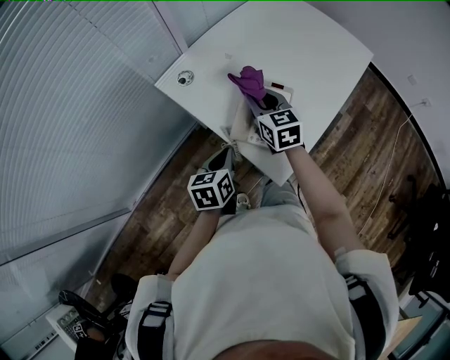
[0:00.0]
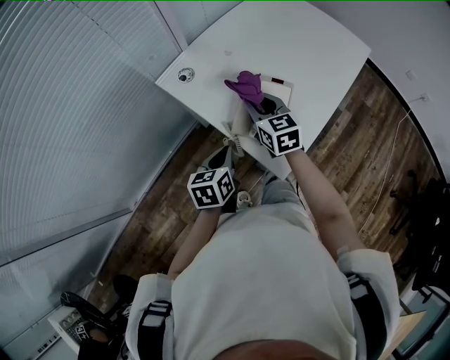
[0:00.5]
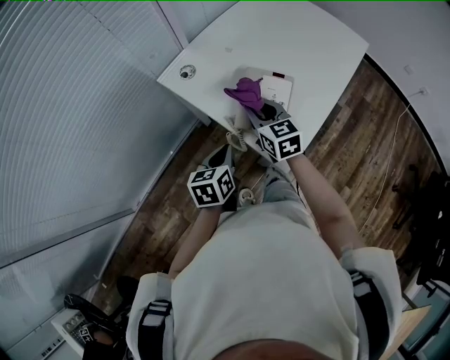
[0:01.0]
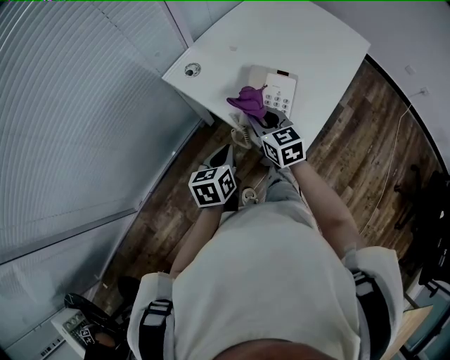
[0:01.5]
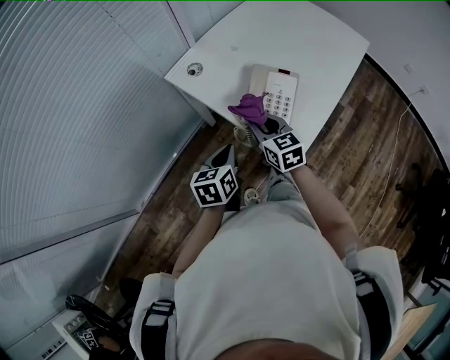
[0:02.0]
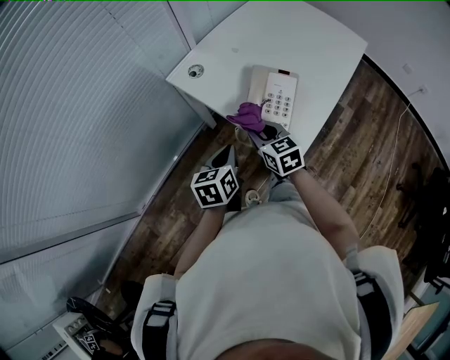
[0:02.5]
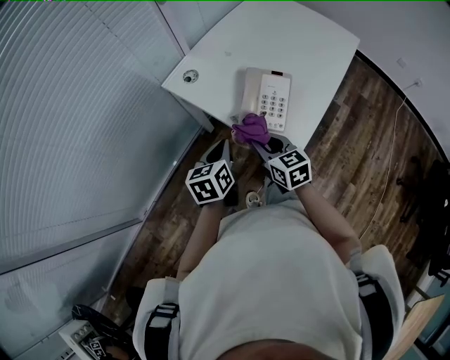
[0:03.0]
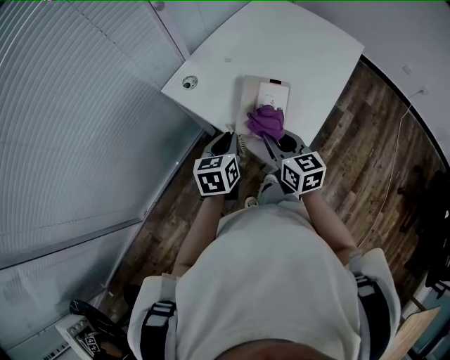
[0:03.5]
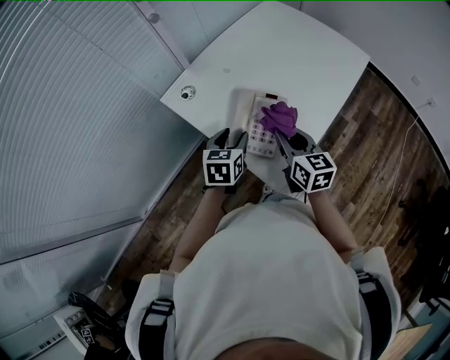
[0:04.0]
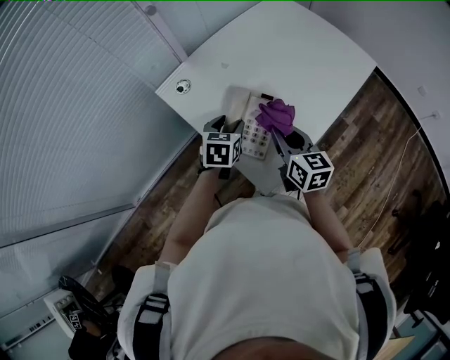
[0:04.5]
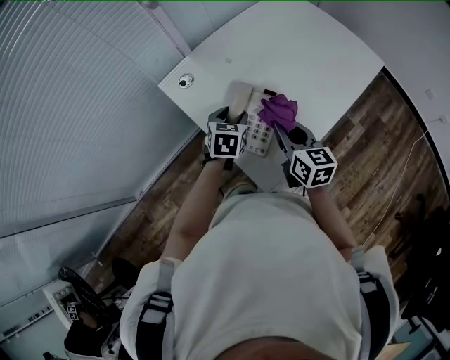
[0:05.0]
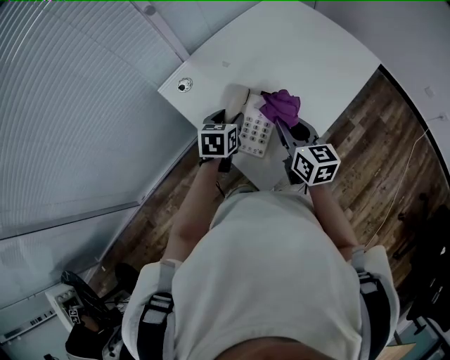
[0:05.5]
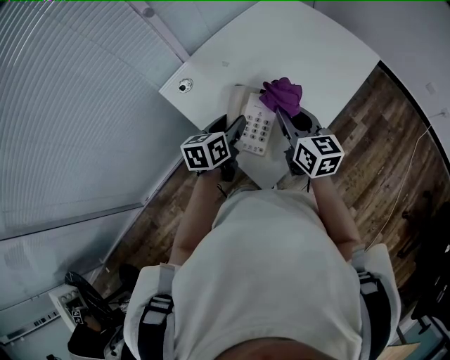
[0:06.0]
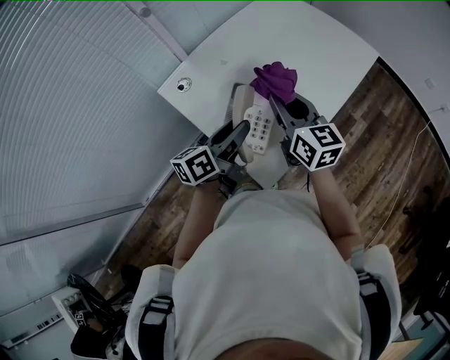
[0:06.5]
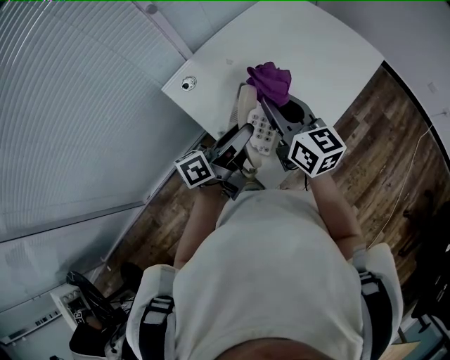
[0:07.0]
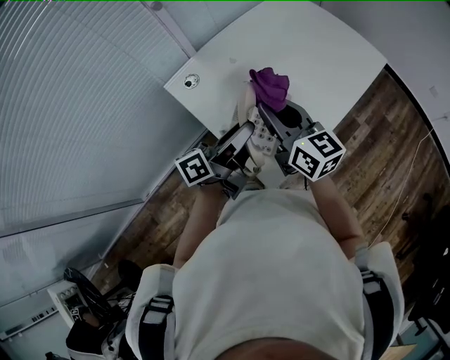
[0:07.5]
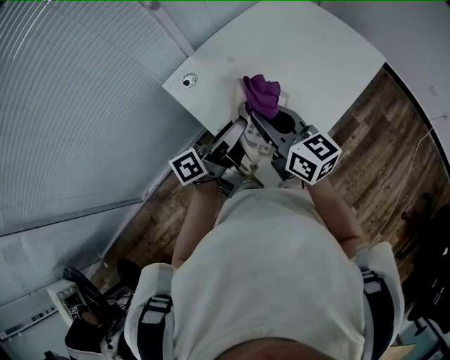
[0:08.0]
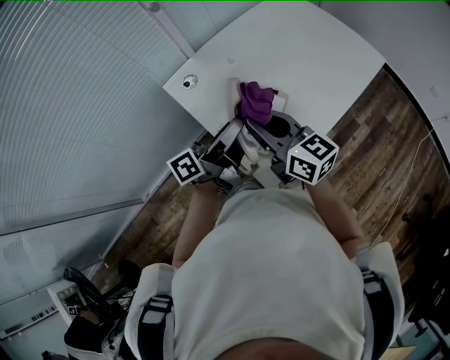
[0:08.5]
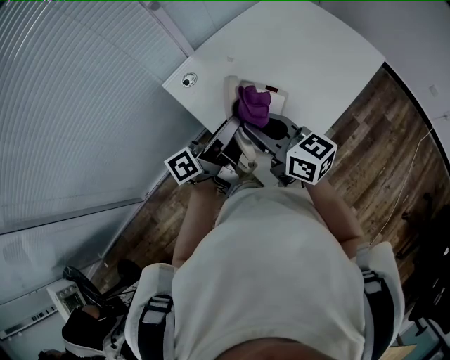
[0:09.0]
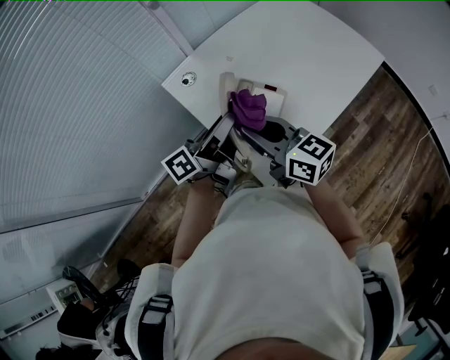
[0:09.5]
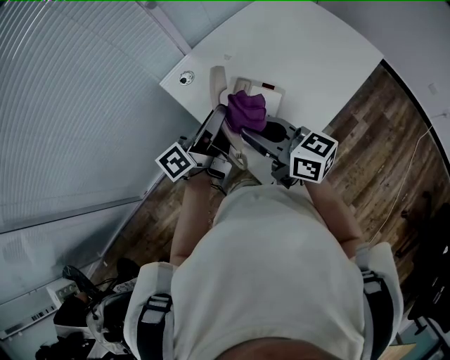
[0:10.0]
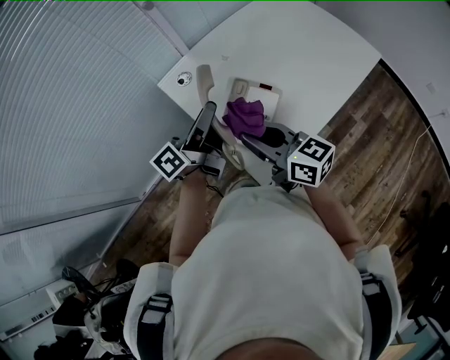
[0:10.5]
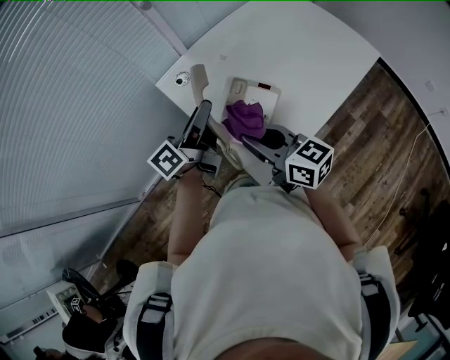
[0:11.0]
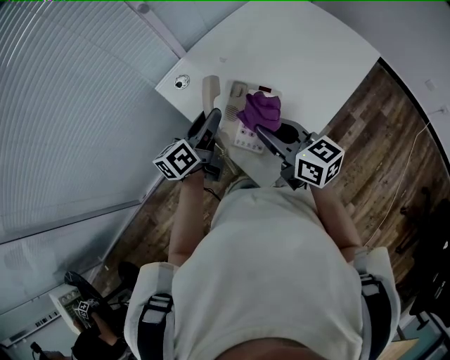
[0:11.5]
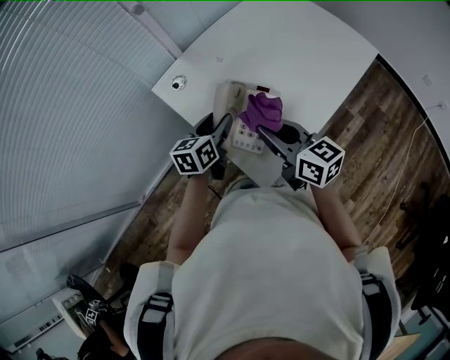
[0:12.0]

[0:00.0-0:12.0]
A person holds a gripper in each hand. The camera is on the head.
0:00.0 to 0:02.0: The left gripper changes place by about 5 cm; the right gripper shifts some 10 cm backward.
0:02.0 to 0:04.0: The right gripper is displaced to the right by roughly 15 cm. The left gripper heads forward and to the right, covering roughly 15 cm, and opens.
0:04.0 to 0:06.0: The right gripper ends up roughly 5 cm from where it was.
0:06.0 to 0:08.0: The right gripper is displaced to the left and upward by roughly 10 cm, and turns by approximately 20 degrees; the left gripper is displaced upward by approximately 10 cm, and angles its fingers upward, by roughly 40 degrees.
0:08.0 to 0:10.0: The right gripper shifts by some 5 cm.
0:10.0 to 0:12.0: The right gripper is displaced to the right by some 5 cm, while the left gripper travels downward by approximately 10 cm, and angles its fingers downward, by about 40 degrees.

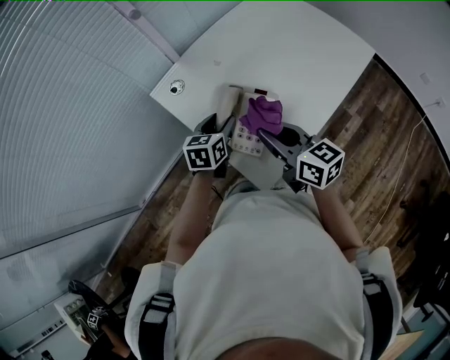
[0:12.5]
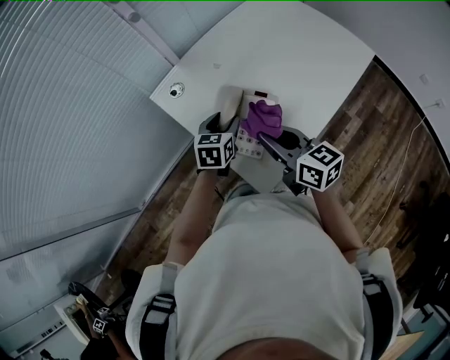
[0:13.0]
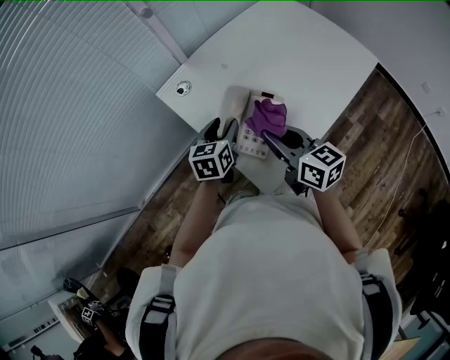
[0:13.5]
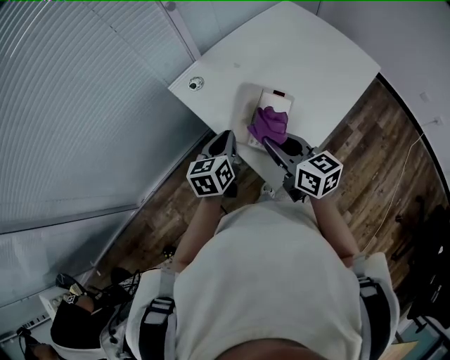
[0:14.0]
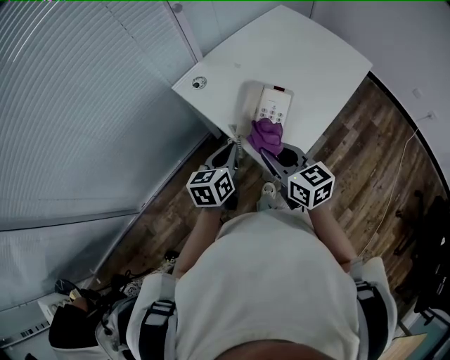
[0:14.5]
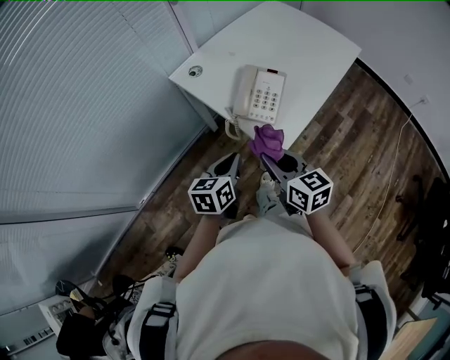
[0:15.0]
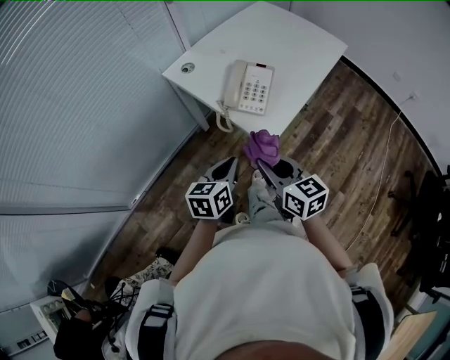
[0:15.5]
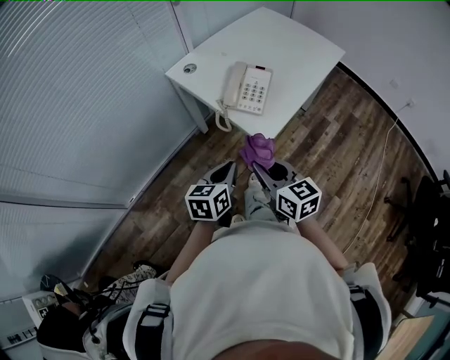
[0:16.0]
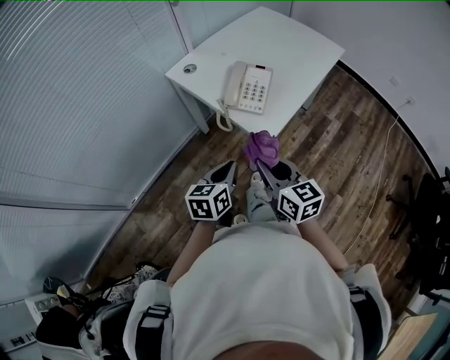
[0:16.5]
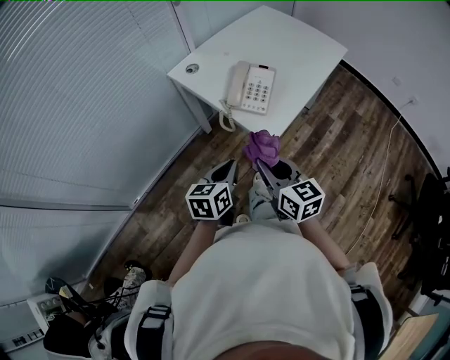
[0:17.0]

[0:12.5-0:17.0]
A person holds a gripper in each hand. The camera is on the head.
0:12.5 to 0:14.5: The right gripper goes approximately 10 cm to the left and backward. The left gripper goes roughly 15 cm backward, to the left and upward, and closes up.
0:14.5 to 0:17.0: Both grippers travel together backward, some 20 cm.

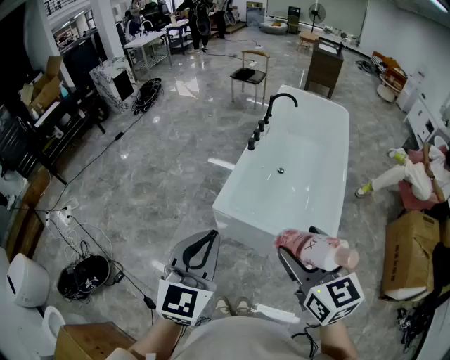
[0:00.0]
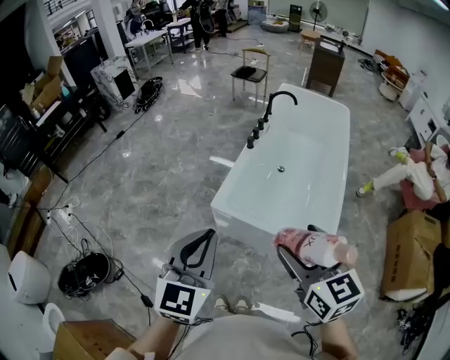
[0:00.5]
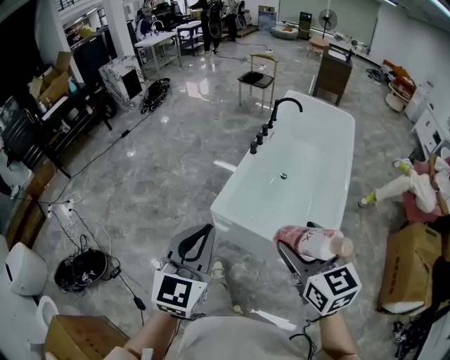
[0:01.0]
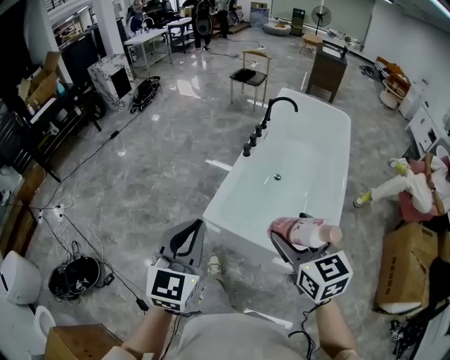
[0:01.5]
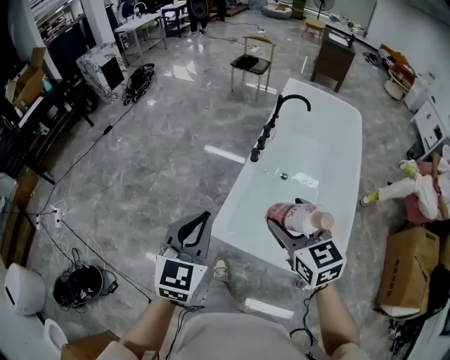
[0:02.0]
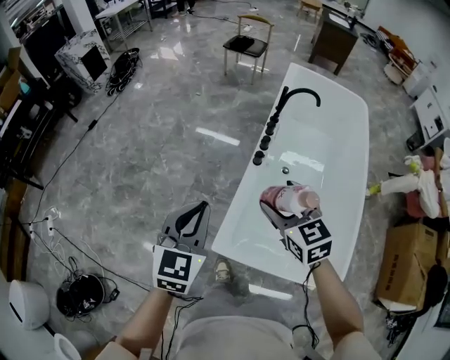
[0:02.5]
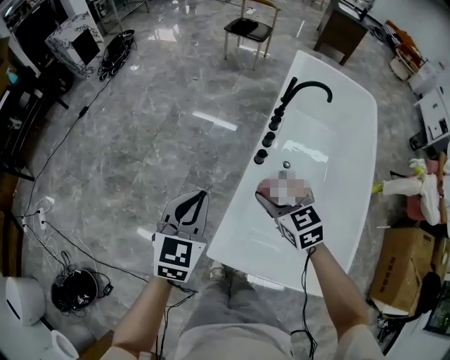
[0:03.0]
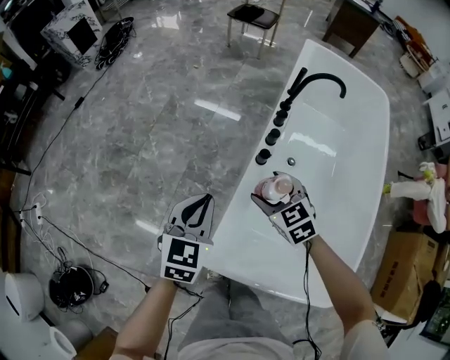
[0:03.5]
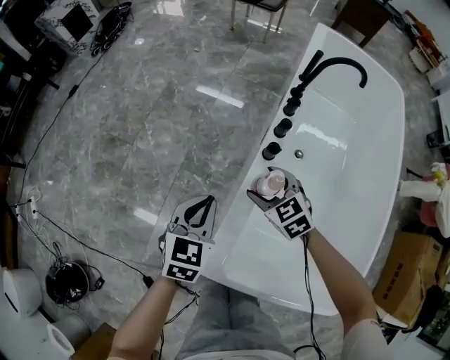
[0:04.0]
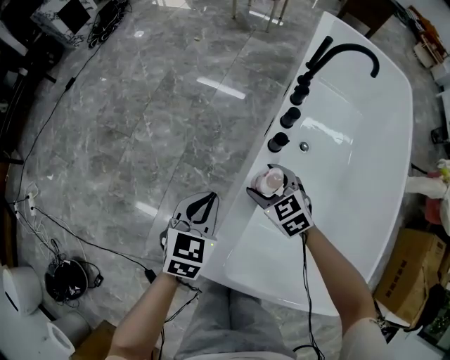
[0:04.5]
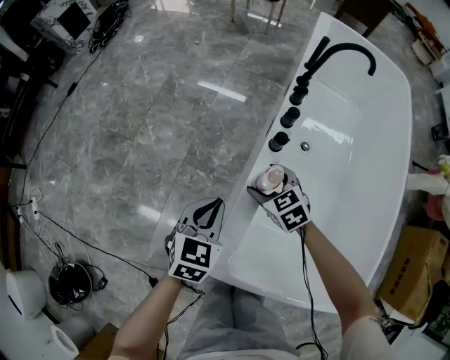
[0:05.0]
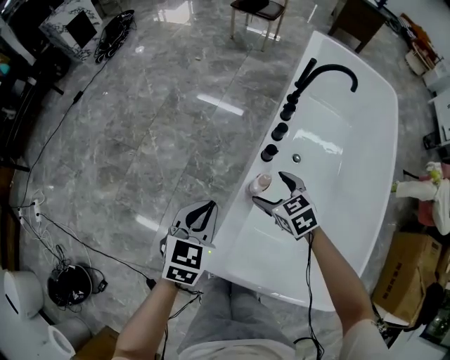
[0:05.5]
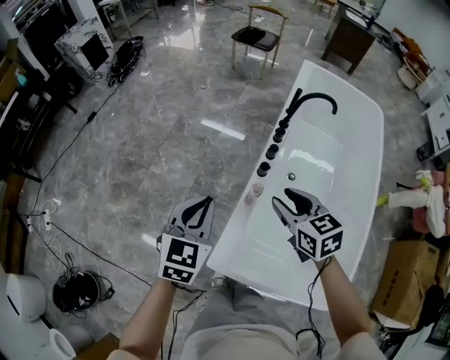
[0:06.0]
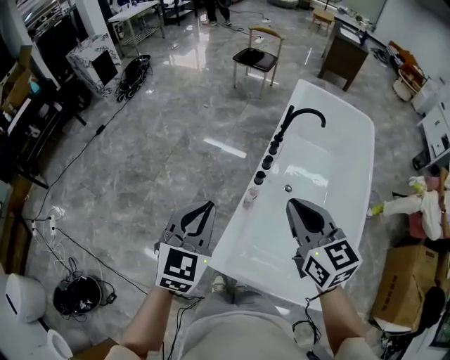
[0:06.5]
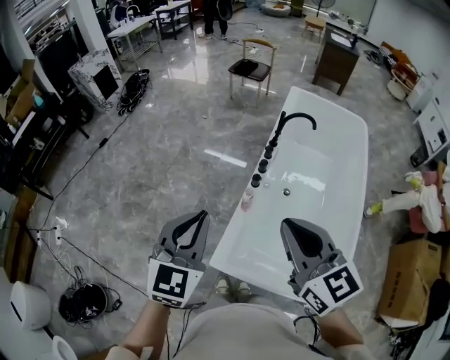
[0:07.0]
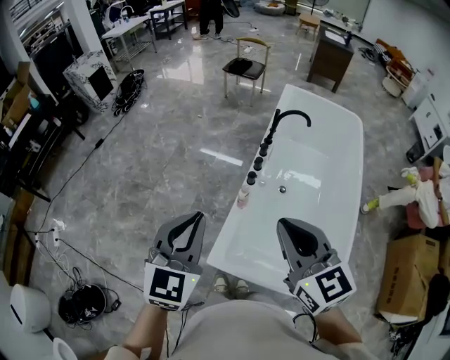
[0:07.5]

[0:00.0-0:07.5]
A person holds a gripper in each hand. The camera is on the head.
0:00.0 to 0:02.0: The grippers both shift forward by some 30 cm.
0:02.0 to 0:04.0: The grippers both shift downward and forward by roughly 50 cm. The right gripper swivels about 30 degrees; the left gripper turns by about 20 degrees.
0:04.0 to 0:05.5: The right gripper moves some 5 cm downward and comes back.
0:05.5 to 0:07.5: The left gripper heads upward, covering about 35 cm, and swivels about 30 degrees; the right gripper is displaced upward and backward by approximately 50 cm, points its fingers some 40 degrees further upward, and closes.

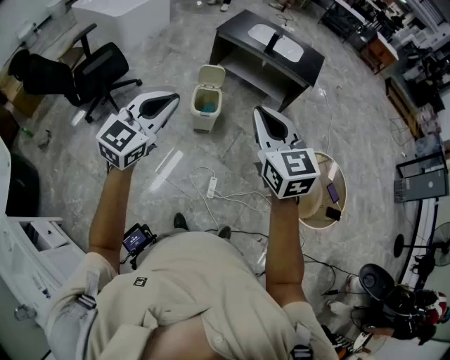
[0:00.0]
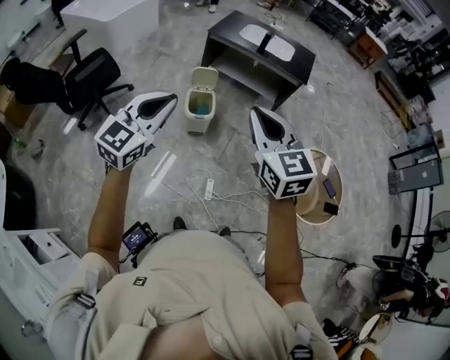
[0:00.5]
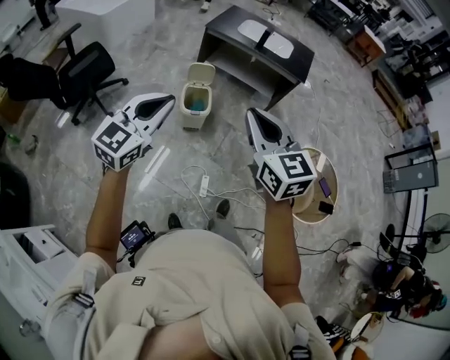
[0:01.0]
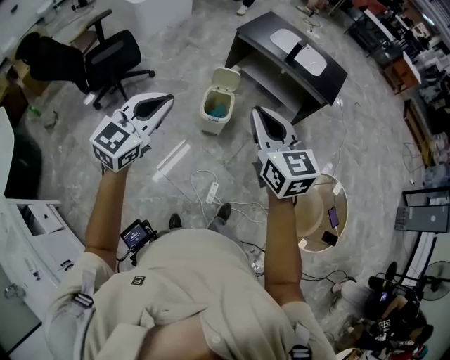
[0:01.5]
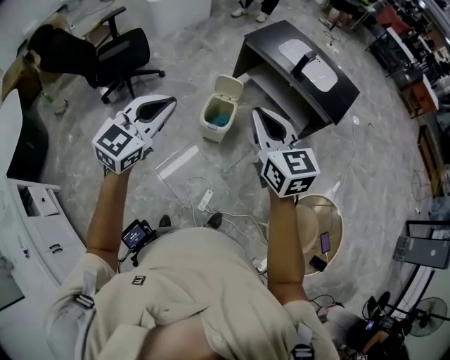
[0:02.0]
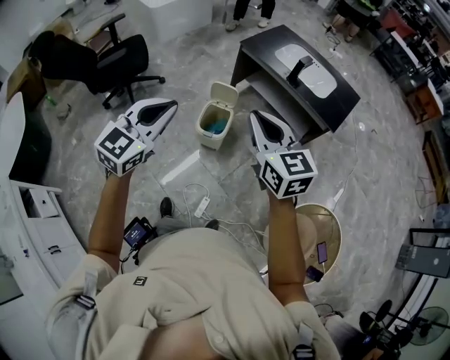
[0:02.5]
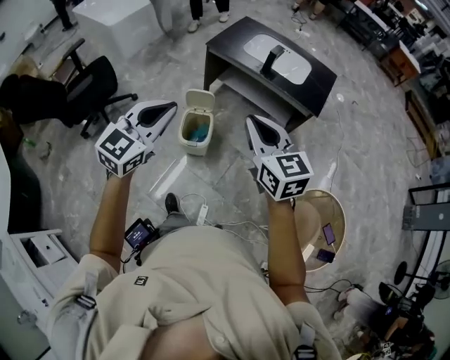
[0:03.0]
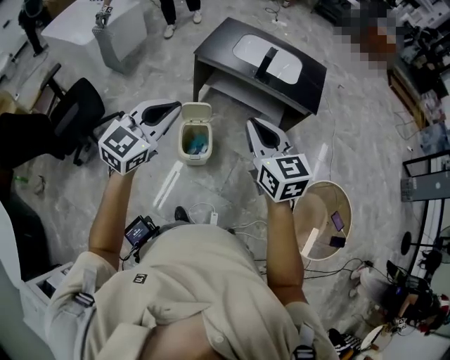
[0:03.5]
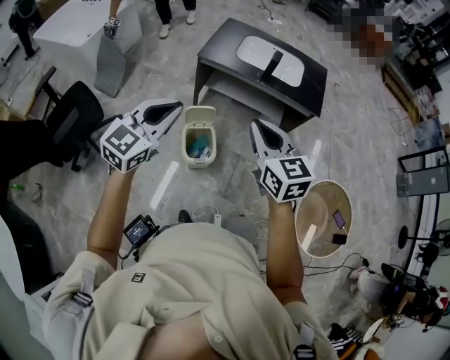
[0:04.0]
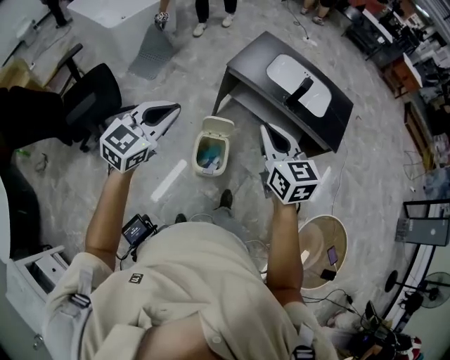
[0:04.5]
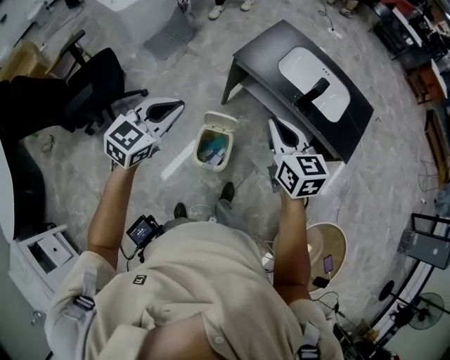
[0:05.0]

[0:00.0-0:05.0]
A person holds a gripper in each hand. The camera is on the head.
0:00.0 to 0:02.5: The right gripper shifts about 25 cm forward, and swivels about 20 degrees. Meanwhile the left gripper goes approximately 20 cm forward and to the right.
0:02.5 to 0:05.0: The right gripper moves about 35 cm. Meanwhile the left gripper moves approximately 40 cm.
